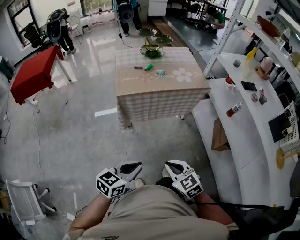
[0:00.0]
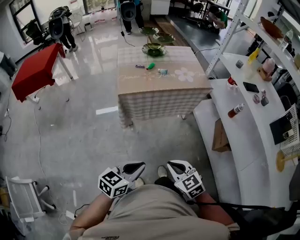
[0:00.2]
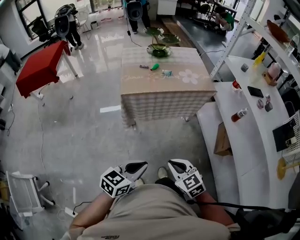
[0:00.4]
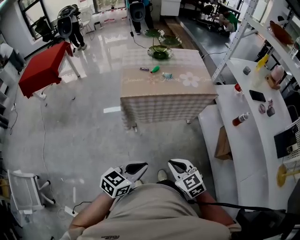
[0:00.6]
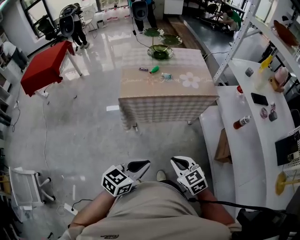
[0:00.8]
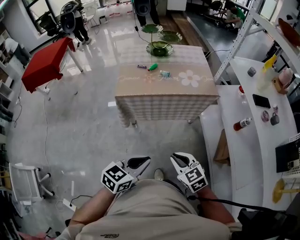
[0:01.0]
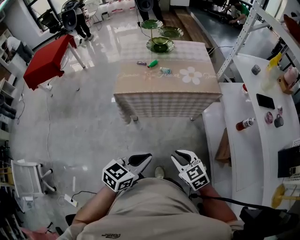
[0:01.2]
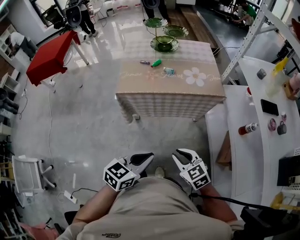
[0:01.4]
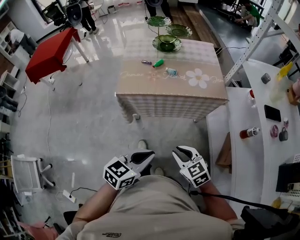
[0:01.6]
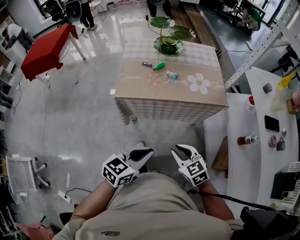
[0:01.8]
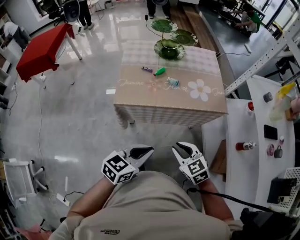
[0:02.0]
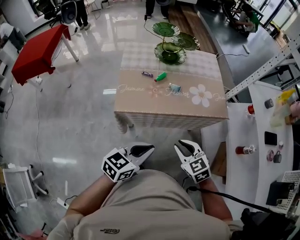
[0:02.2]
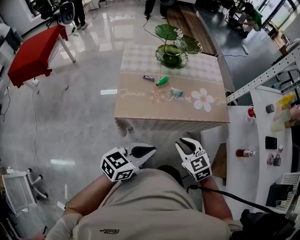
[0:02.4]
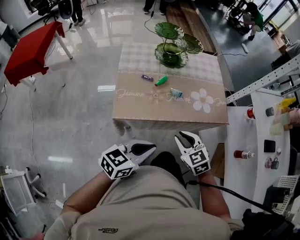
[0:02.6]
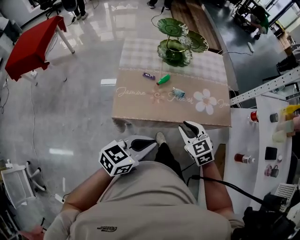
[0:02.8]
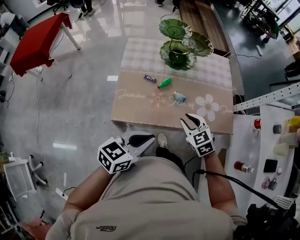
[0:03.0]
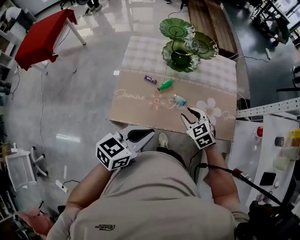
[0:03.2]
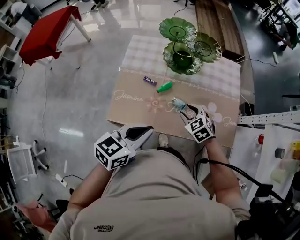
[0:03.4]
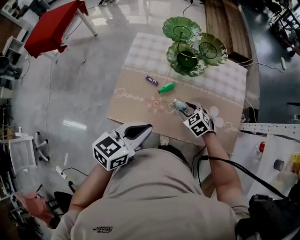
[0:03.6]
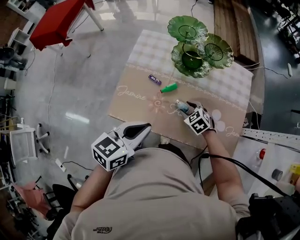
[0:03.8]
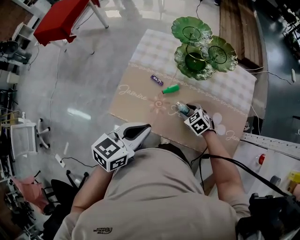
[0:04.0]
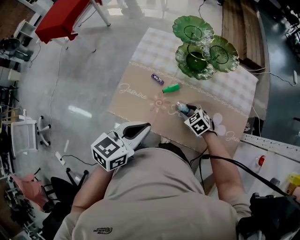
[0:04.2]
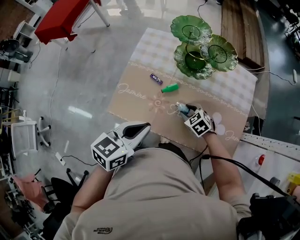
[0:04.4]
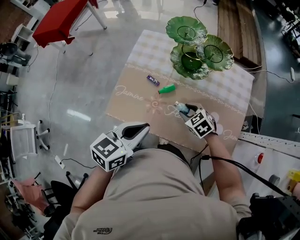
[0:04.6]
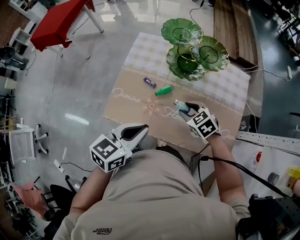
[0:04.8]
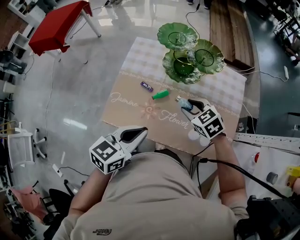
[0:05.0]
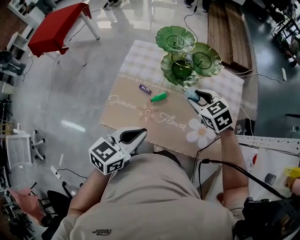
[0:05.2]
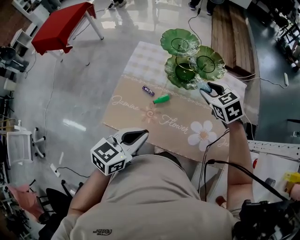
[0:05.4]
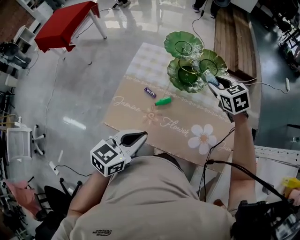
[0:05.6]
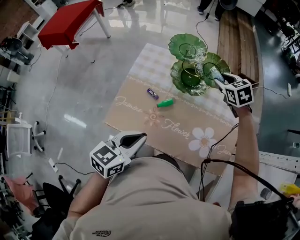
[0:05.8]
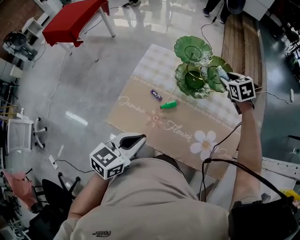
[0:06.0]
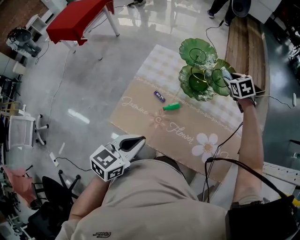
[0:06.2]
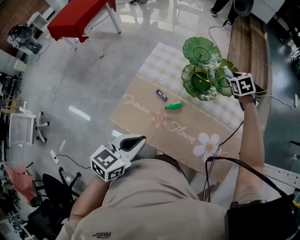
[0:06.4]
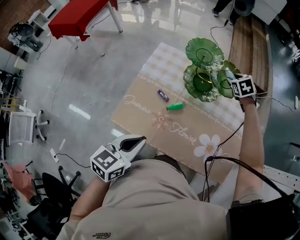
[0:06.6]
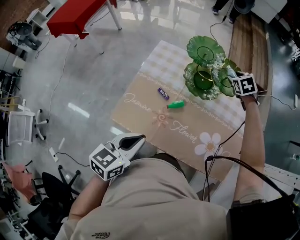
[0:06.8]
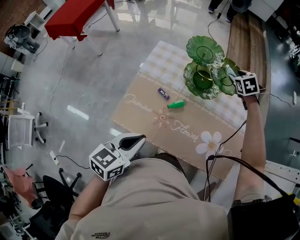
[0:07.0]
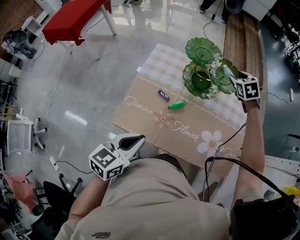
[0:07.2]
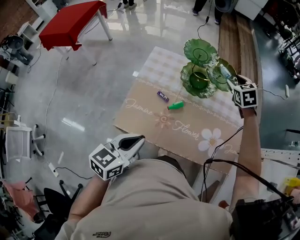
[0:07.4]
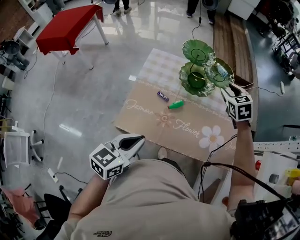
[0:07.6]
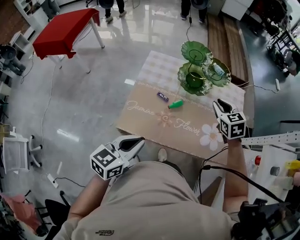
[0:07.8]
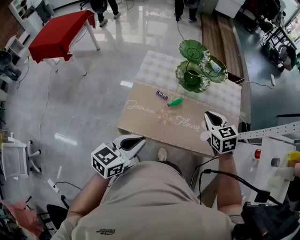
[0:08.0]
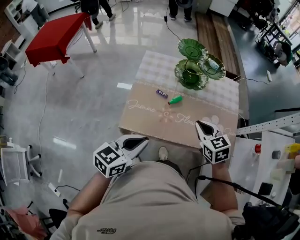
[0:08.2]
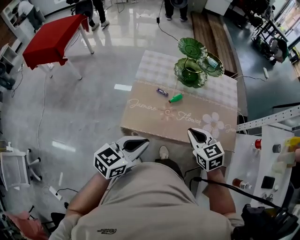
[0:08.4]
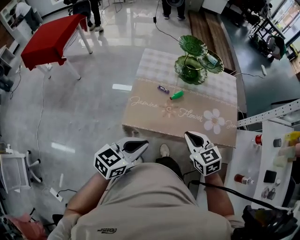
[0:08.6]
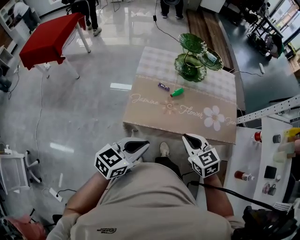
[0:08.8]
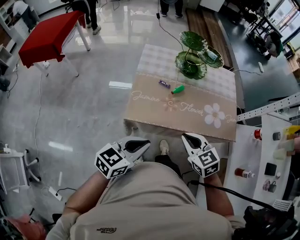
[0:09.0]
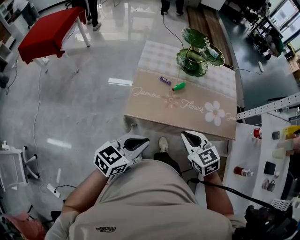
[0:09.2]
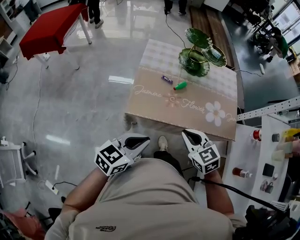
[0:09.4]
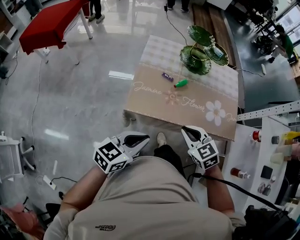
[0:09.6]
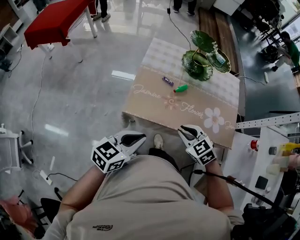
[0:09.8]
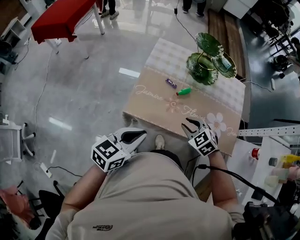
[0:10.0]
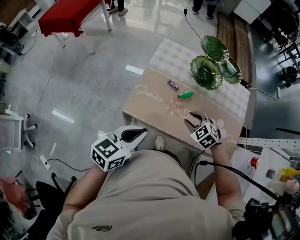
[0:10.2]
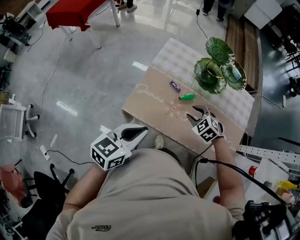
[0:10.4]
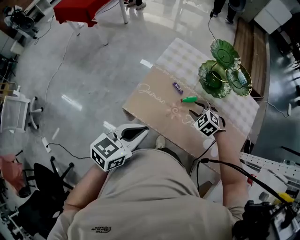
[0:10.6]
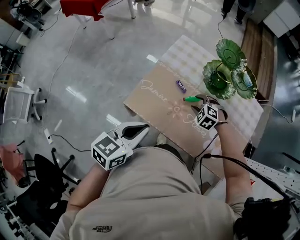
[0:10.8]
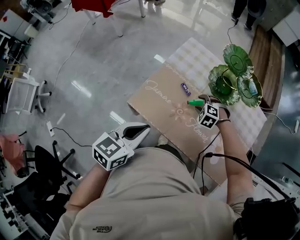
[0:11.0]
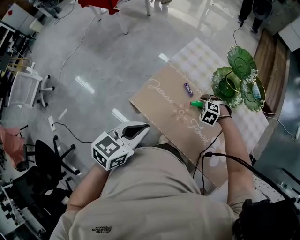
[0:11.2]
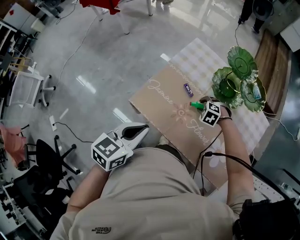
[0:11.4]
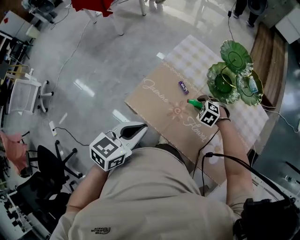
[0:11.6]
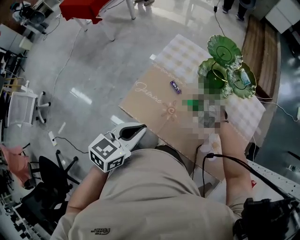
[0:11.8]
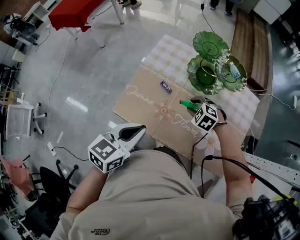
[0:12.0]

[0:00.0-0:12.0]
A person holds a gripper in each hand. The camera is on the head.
0:00.0 to 0:01.6: The two grippers go about 25 cm forward and to the right.
0:01.6 to 0:03.0: The grippers both shift forward by approximately 35 cm.
0:03.0 to 0:04.4: The left gripper changes place by some 10 cm, and swivels approximately 30 degrees; the right gripper moves downward, approximately 15 cm, and swivels about 30 degrees.
0:04.4 to 0:06.0: The right gripper is displaced forward, upward and to the right by roughly 35 cm, and swivels about 20 degrees.
0:06.0 to 0:07.6: The right gripper is displaced backward by approximately 10 cm, while the left gripper is displaced to the left by some 5 cm.
0:07.6 to 0:09.0: The left gripper is displaced backward by some 15 cm. The right gripper heads backward, covering approximately 40 cm, and closes its fingers.
0:09.0 to 0:10.4: The right gripper goes some 25 cm forward and downward, rotates some 40 degrees, and opens up, while the left gripper moves forward, approximately 10 cm, and turns by some 20 degrees.
0:10.4 to 0:12.0: The left gripper shifts about 10 cm to the right; the right gripper goes some 10 cm forward and to the right, and travels downward and back again, some 10 cm each way.

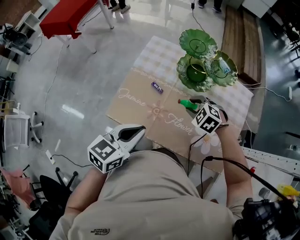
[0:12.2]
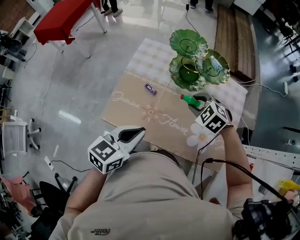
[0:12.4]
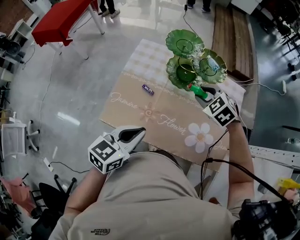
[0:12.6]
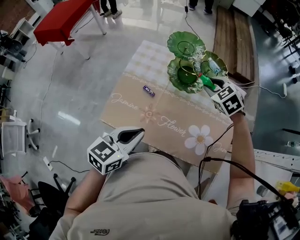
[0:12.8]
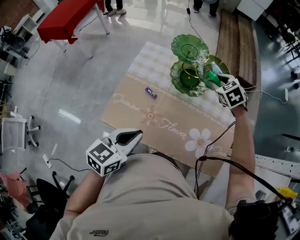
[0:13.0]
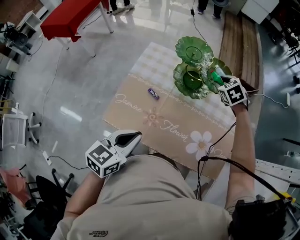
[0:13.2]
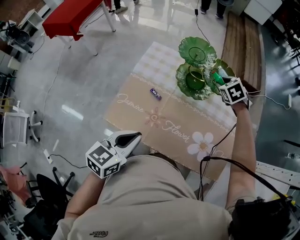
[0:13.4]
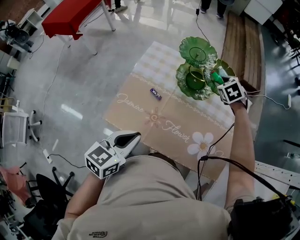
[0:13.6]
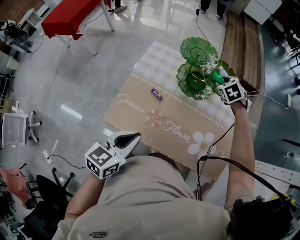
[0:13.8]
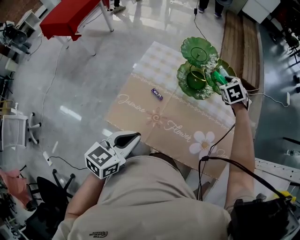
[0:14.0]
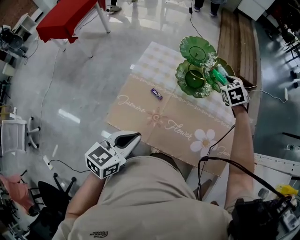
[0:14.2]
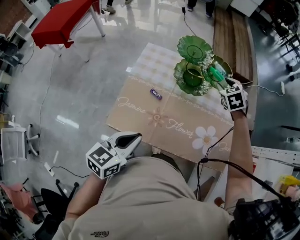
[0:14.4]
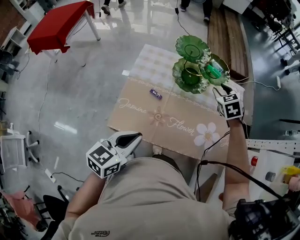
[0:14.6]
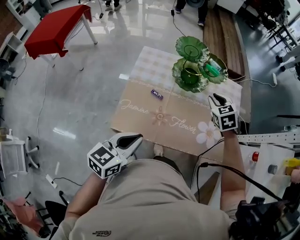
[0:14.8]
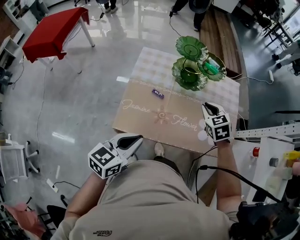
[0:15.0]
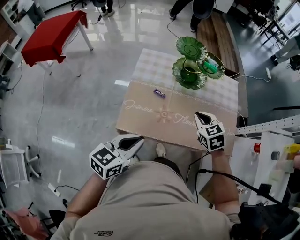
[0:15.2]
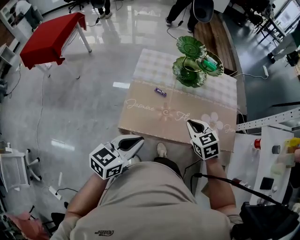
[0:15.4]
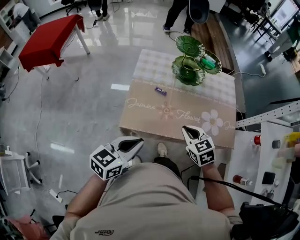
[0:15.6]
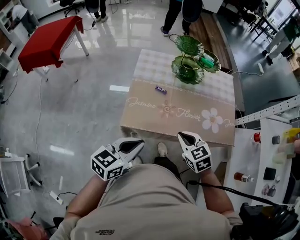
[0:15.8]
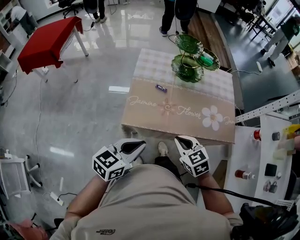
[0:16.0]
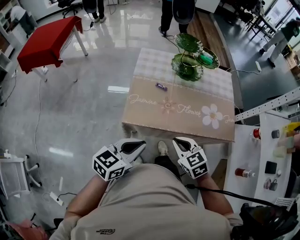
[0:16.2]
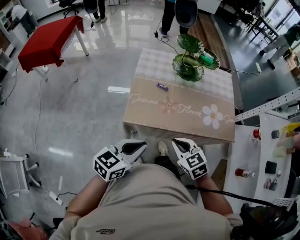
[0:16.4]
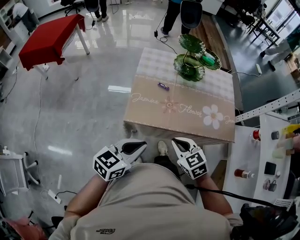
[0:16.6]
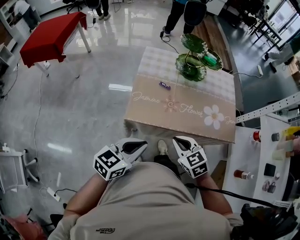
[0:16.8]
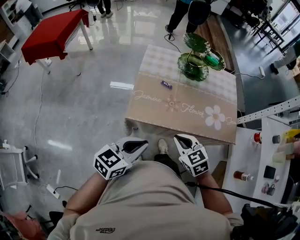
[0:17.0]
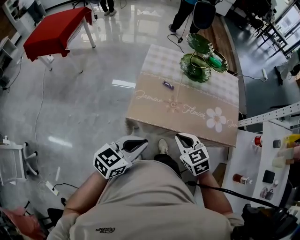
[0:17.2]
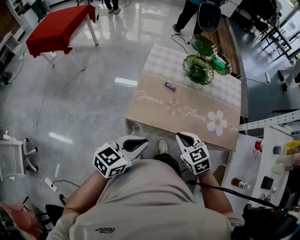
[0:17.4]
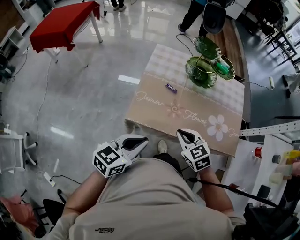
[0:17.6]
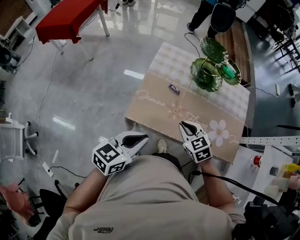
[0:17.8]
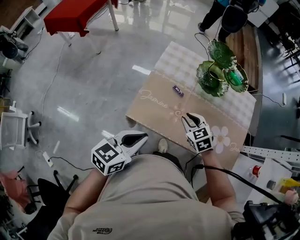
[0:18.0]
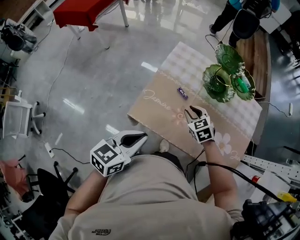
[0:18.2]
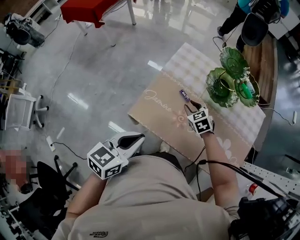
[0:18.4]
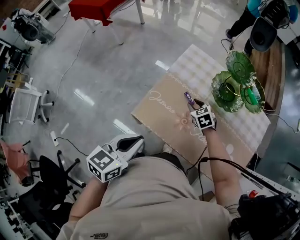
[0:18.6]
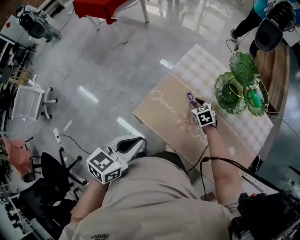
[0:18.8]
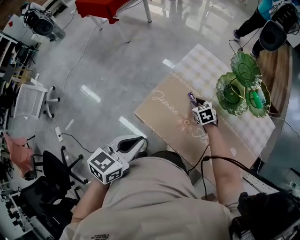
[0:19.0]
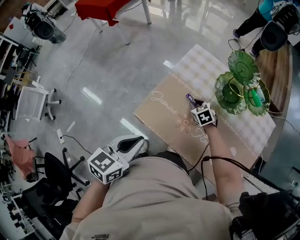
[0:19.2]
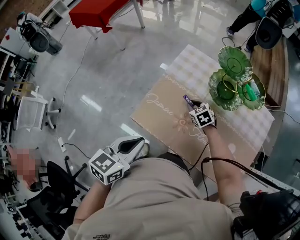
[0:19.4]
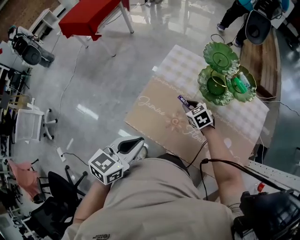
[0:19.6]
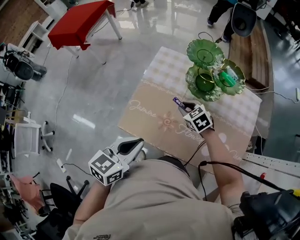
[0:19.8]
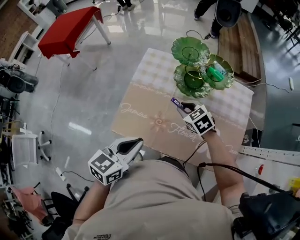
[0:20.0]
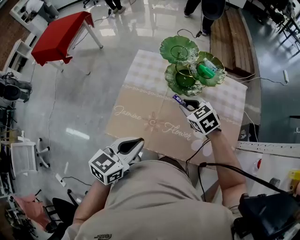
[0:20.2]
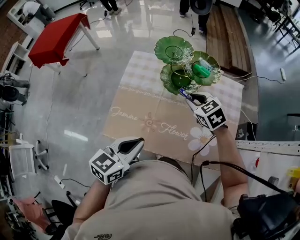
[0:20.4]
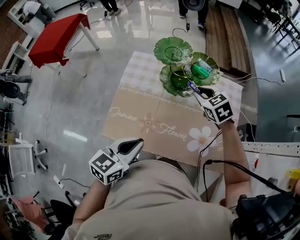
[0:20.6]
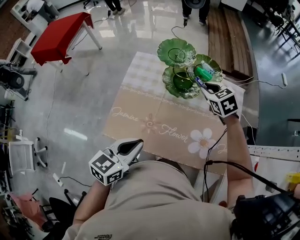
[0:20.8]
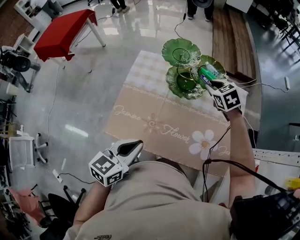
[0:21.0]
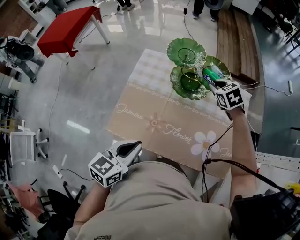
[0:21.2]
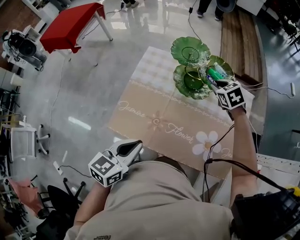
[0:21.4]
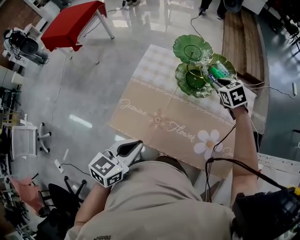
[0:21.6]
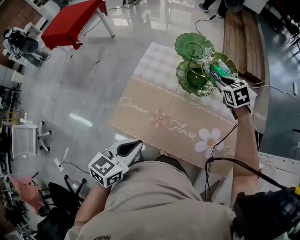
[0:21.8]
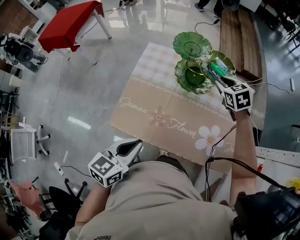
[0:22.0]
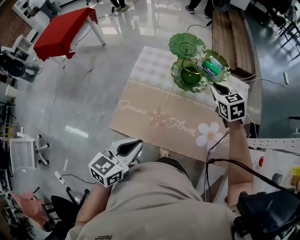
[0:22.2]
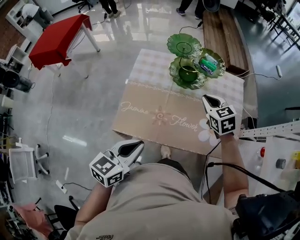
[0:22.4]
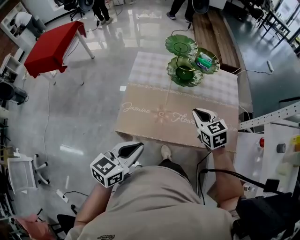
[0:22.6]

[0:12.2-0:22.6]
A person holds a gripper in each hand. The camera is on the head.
0:12.2 to 0:13.6: The right gripper travels forward and to the right by about 25 cm, and swivels some 30 degrees.
0:13.6 to 0:15.2: The right gripper is displaced backward by approximately 30 cm, rotates roughly 20 degrees, and closes. The left gripper is displaced backward and to the left by roughly 10 cm.
0:15.2 to 0:16.6: The left gripper heads backward, covering approximately 10 cm. The right gripper is displaced backward and to the left by approximately 25 cm.
0:16.6 to 0:18.2: The left gripper is displaced forward by roughly 10 cm, and changes its angle by roughly 20 degrees; the right gripper is displaced forward by approximately 25 cm, and opens its fingers.
0:18.2 to 0:19.6: The right gripper is displaced forward by about 5 cm, while the left gripper travels to the right by approximately 5 cm.
0:19.6 to 0:21.2: The right gripper is displaced to the right, upward and forward by roughly 30 cm, while the left gripper moves to the right, about 10 cm.
0:21.2 to 0:22.6: The left gripper heads backward and to the left, covering roughly 10 cm. Meanwhile the right gripper goes about 25 cm backward, and turns by some 20 degrees.

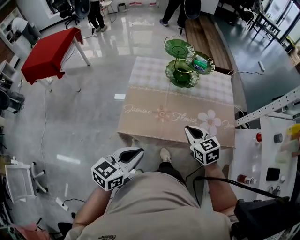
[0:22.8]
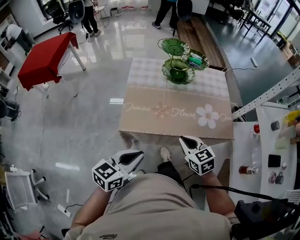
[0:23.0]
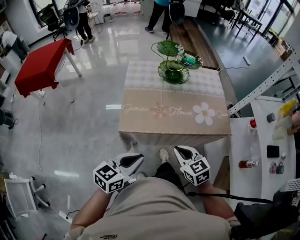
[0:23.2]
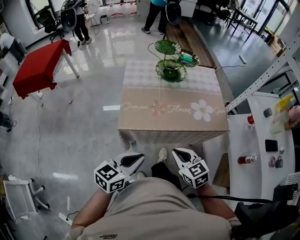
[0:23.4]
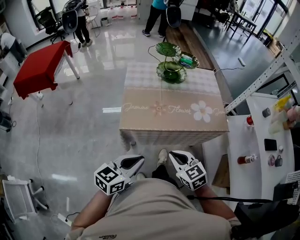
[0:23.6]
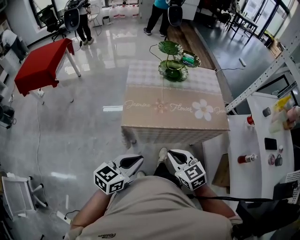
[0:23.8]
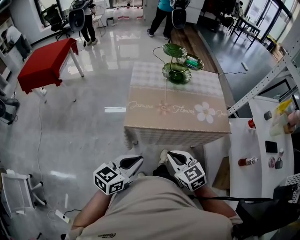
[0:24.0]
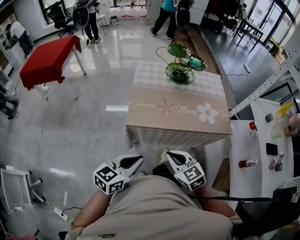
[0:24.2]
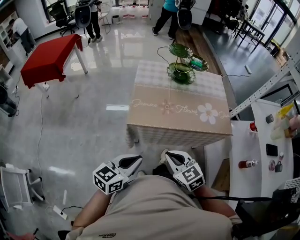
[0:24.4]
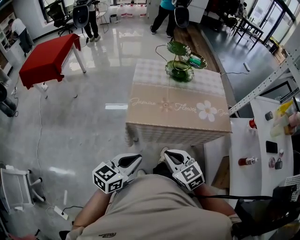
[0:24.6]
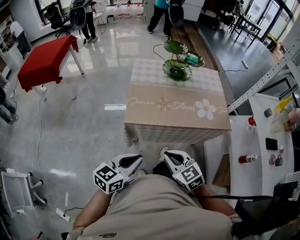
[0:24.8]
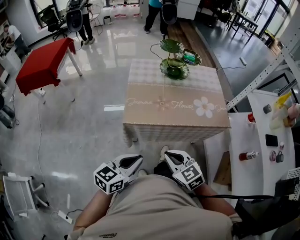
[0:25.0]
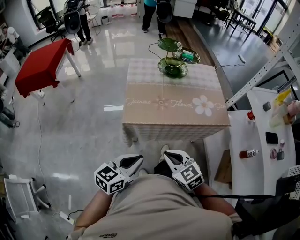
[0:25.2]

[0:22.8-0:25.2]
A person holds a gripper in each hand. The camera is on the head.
0:22.8 to 0:24.0: The left gripper moves backward, roughly 15 cm; the right gripper travels backward by some 25 cm.
0:24.0 to 0:25.2: The grippers stay close to where they were, moving slightly.
